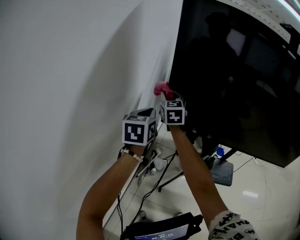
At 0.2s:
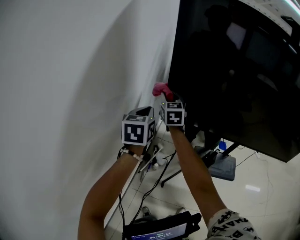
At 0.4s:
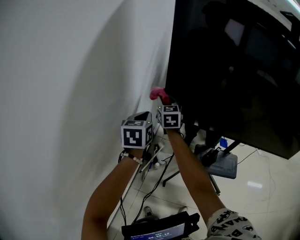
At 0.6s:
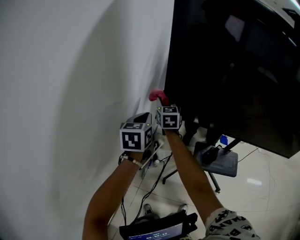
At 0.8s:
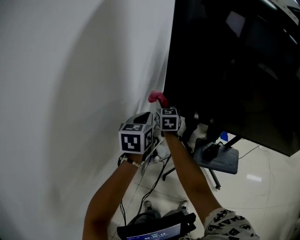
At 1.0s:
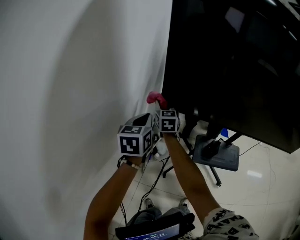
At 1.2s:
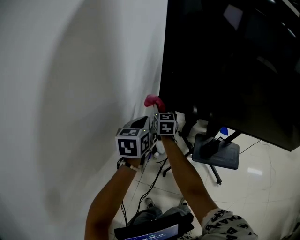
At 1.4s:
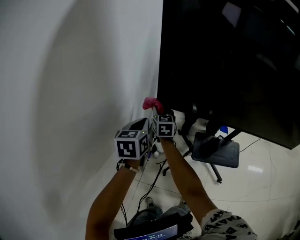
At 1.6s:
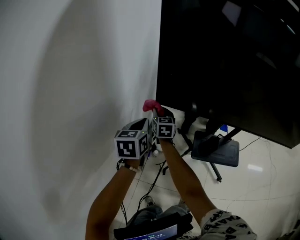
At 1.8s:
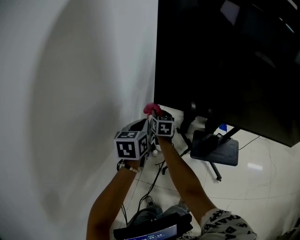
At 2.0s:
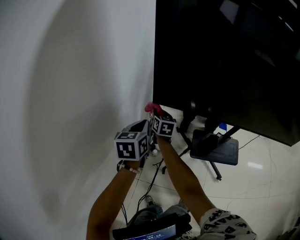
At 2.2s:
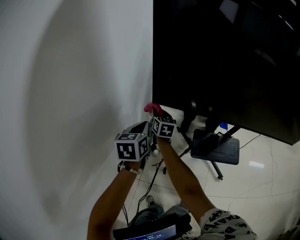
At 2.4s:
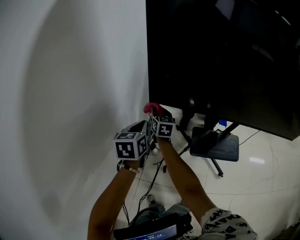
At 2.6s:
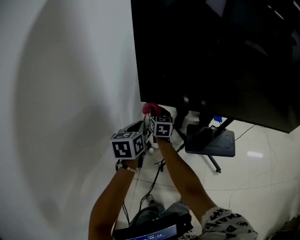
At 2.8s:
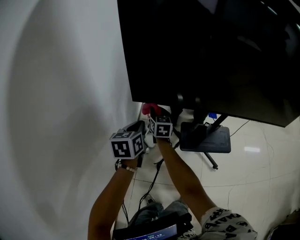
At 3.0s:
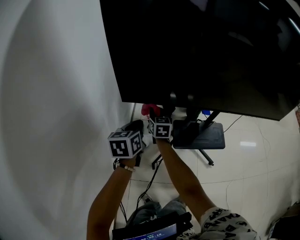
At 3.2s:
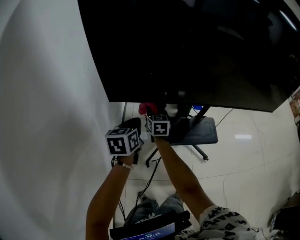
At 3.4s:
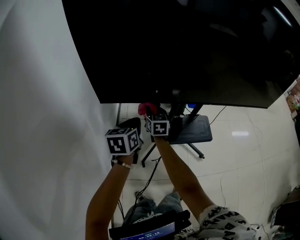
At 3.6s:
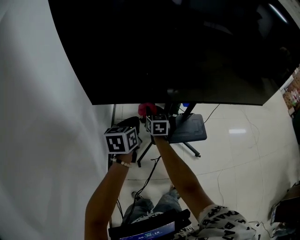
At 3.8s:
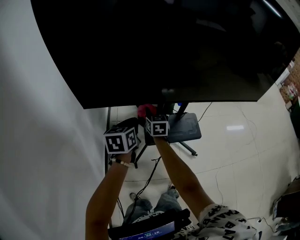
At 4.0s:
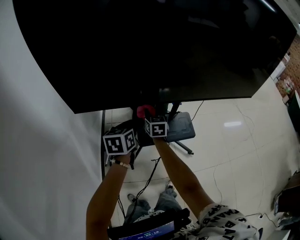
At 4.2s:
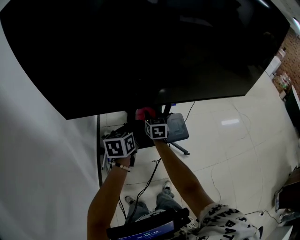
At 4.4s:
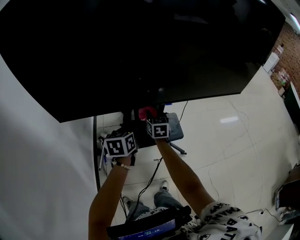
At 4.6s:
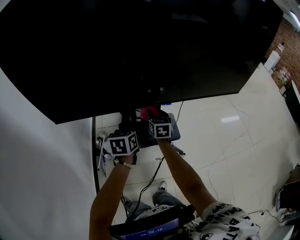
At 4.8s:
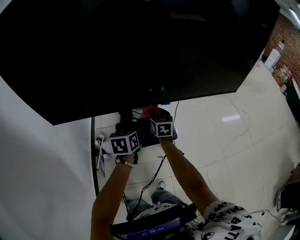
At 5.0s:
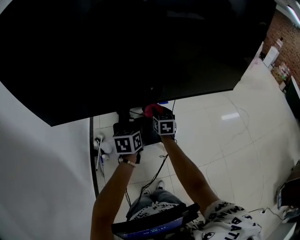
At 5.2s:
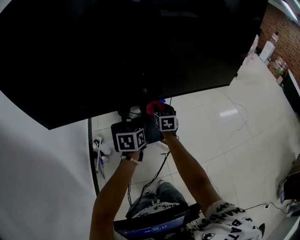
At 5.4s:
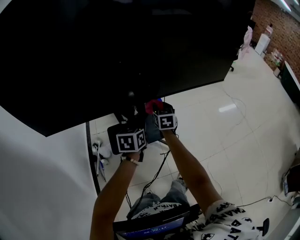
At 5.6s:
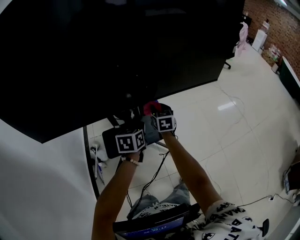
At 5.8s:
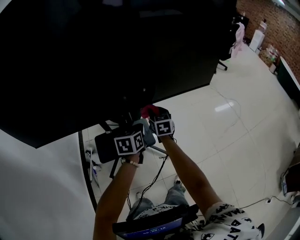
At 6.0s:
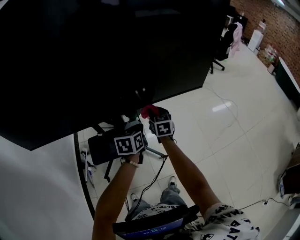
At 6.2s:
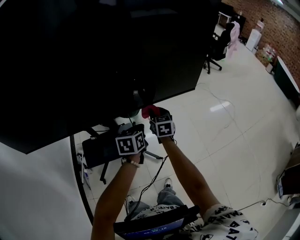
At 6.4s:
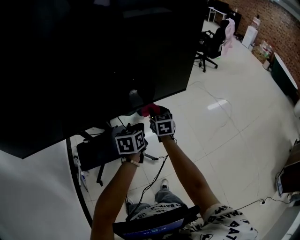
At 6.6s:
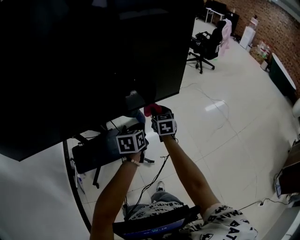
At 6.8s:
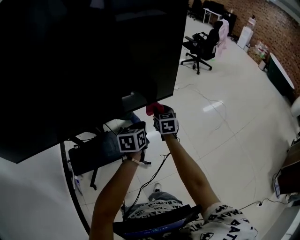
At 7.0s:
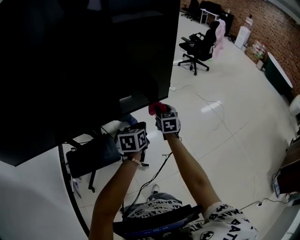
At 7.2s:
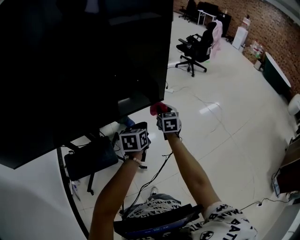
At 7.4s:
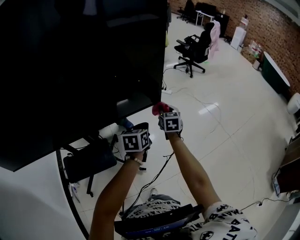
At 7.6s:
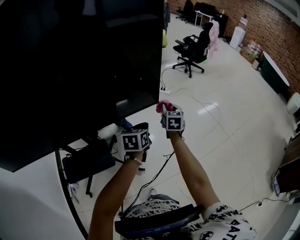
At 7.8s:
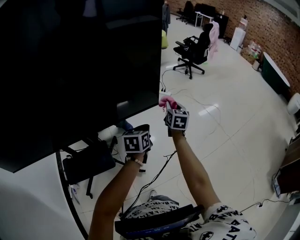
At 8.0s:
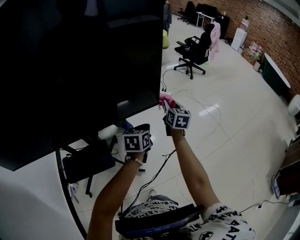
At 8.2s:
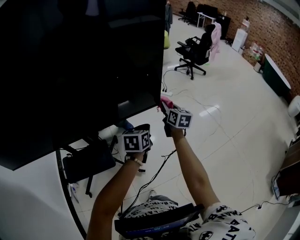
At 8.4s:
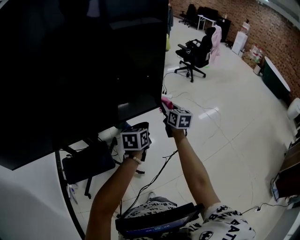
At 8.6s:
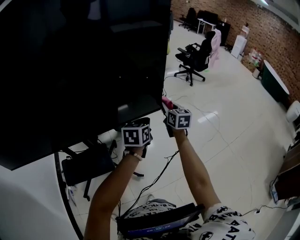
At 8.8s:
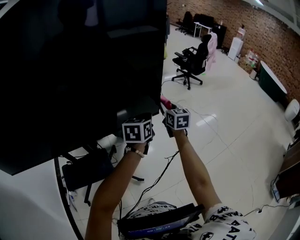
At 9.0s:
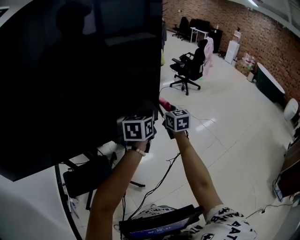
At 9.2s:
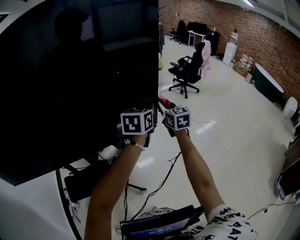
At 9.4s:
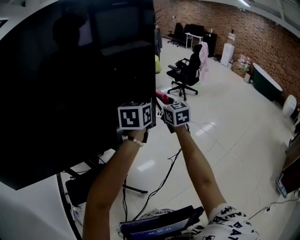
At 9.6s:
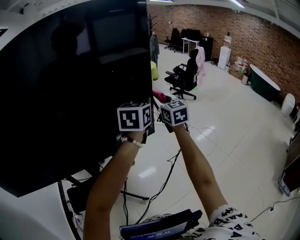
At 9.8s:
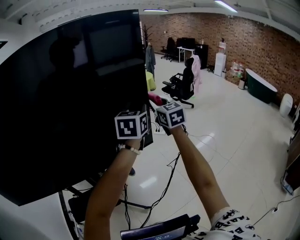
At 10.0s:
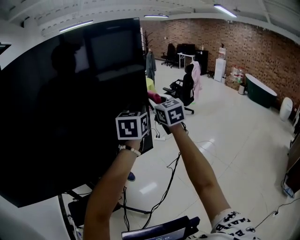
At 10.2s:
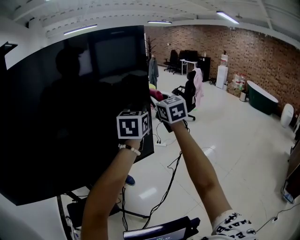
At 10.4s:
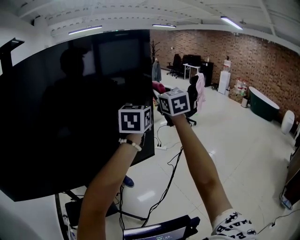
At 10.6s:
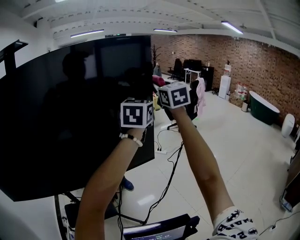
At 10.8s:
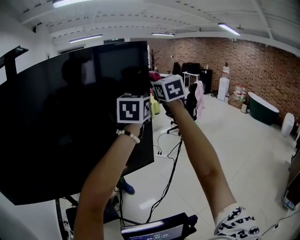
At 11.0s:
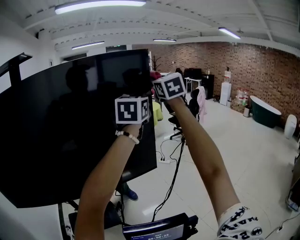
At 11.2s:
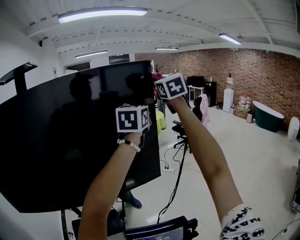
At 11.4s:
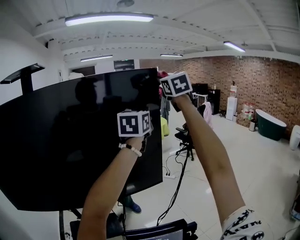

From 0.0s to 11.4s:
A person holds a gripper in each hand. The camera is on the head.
From 0.0s to 1.4s: The left gripper travels downward by some 15 cm. The right gripper goes some 20 cm downward.
From 1.4s to 2.8s: The two grippers go some 10 cm to the right.
From 2.8s to 4.2s: The two grippers go about 30 cm to the right.
From 4.2s to 5.6s: The grippers both shift to the right by approximately 25 cm.
From 5.6s to 7.2s: Both grippers travel together to the right and forward, roughly 40 cm.
From 7.2s to 8.6s: The two grippers go roughly 5 cm upward.
From 8.6s to 10.0s: The grippers both shift upward by approximately 30 cm. The right gripper rotates roughly 30 degrees. Meanwhile the left gripper turns by some 30 degrees.
From 10.0s to 11.4s: The right gripper moves upward, some 30 cm; the left gripper goes about 15 cm upward.

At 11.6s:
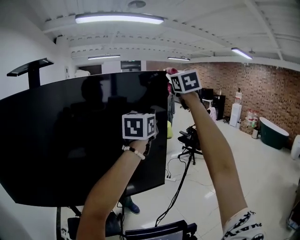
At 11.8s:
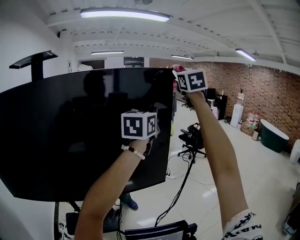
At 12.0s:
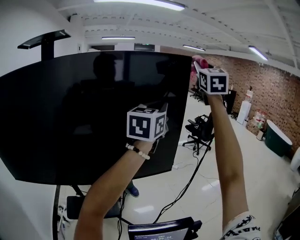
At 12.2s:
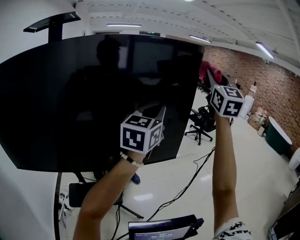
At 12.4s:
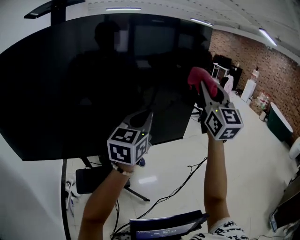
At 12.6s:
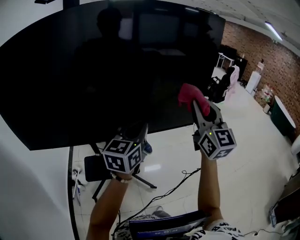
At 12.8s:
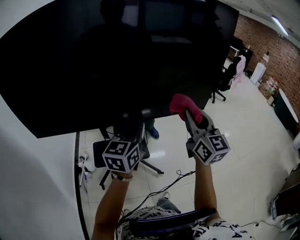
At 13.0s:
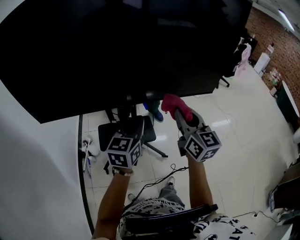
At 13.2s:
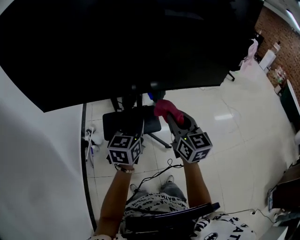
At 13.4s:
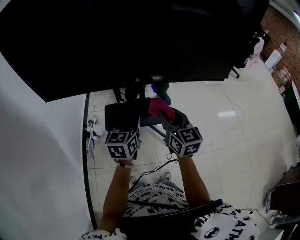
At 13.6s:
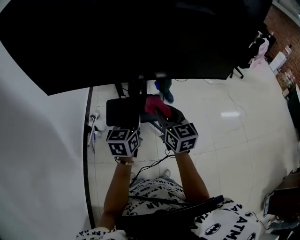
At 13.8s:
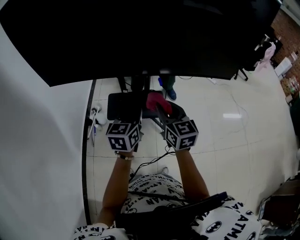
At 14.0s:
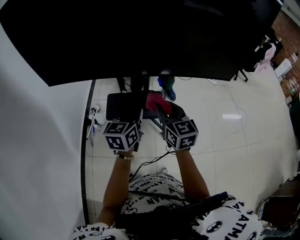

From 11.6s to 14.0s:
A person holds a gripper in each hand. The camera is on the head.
From 11.6s to 12.8s: The left gripper shifts some 50 cm to the left, backward and downward, while the right gripper heads downward, backward and to the left, covering approximately 50 cm, and swivels about 30 degrees.
From 12.8s to 14.0s: The right gripper heads downward and to the left, covering roughly 25 cm, and changes its angle by roughly 30 degrees; the left gripper is displaced downward and to the left by approximately 15 cm.

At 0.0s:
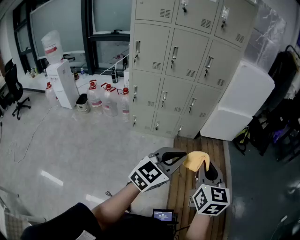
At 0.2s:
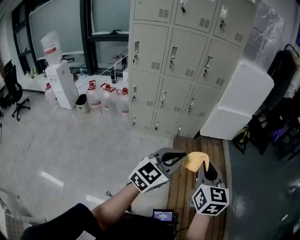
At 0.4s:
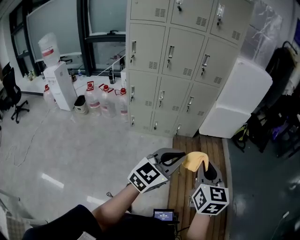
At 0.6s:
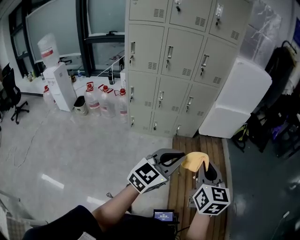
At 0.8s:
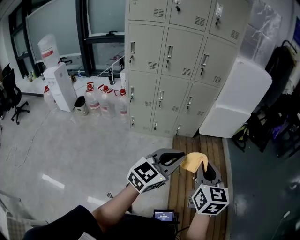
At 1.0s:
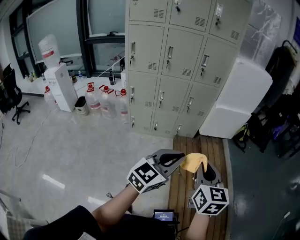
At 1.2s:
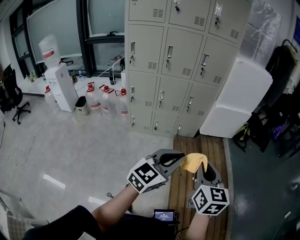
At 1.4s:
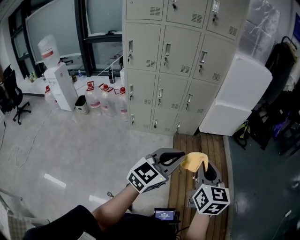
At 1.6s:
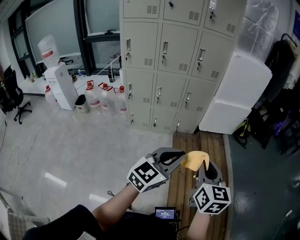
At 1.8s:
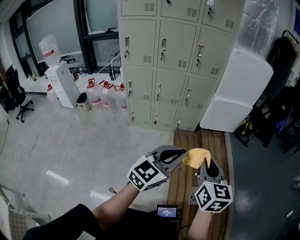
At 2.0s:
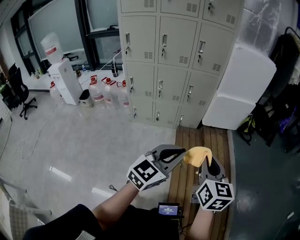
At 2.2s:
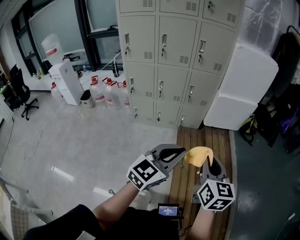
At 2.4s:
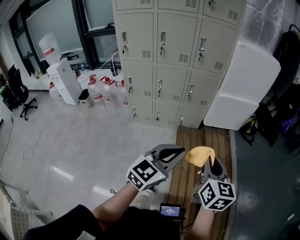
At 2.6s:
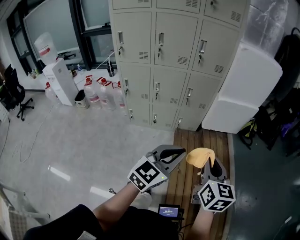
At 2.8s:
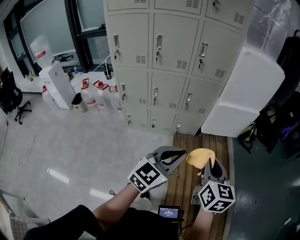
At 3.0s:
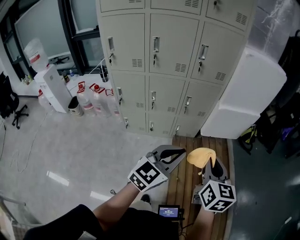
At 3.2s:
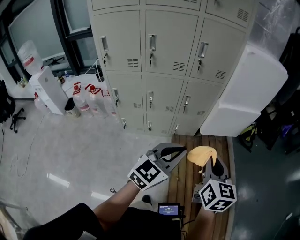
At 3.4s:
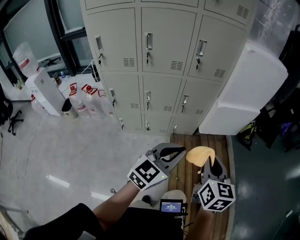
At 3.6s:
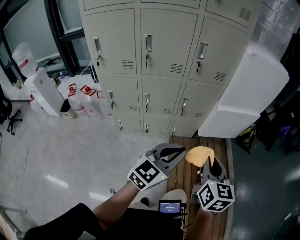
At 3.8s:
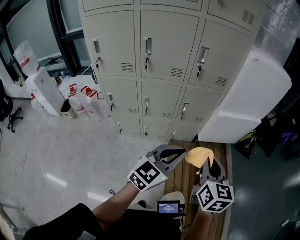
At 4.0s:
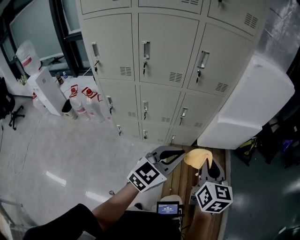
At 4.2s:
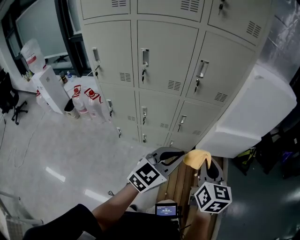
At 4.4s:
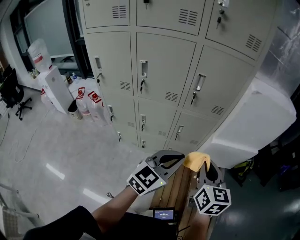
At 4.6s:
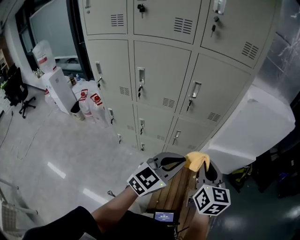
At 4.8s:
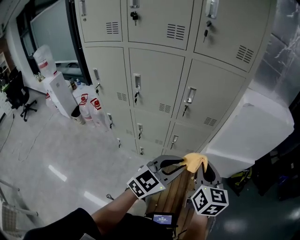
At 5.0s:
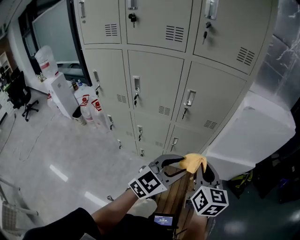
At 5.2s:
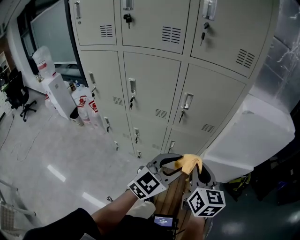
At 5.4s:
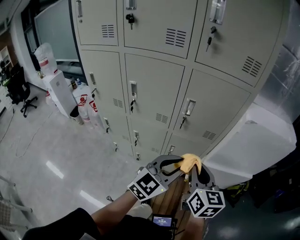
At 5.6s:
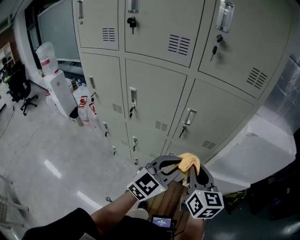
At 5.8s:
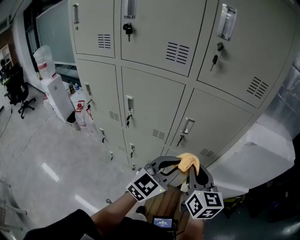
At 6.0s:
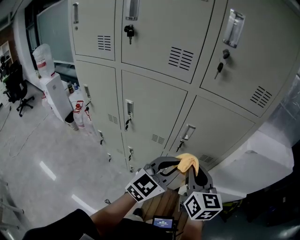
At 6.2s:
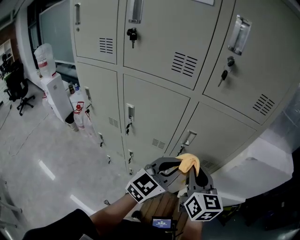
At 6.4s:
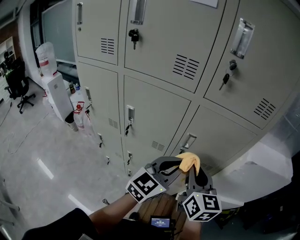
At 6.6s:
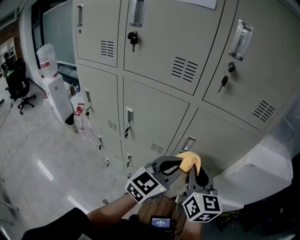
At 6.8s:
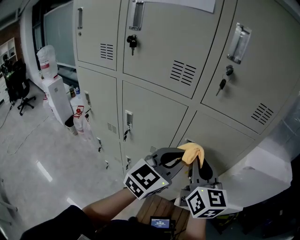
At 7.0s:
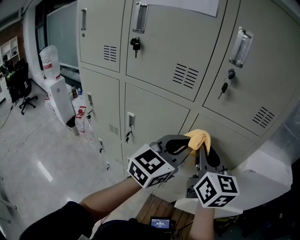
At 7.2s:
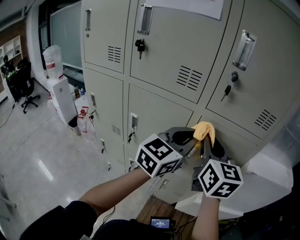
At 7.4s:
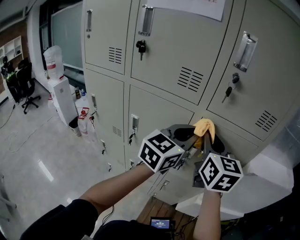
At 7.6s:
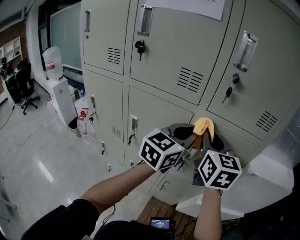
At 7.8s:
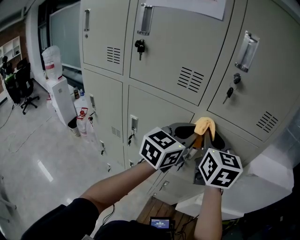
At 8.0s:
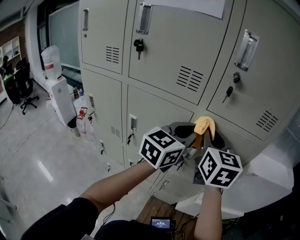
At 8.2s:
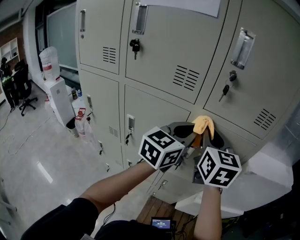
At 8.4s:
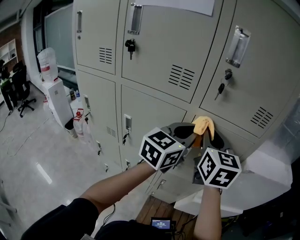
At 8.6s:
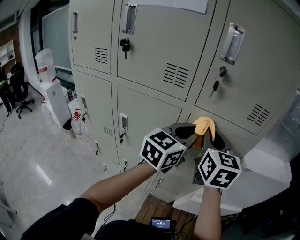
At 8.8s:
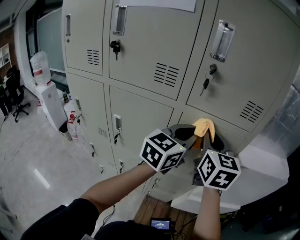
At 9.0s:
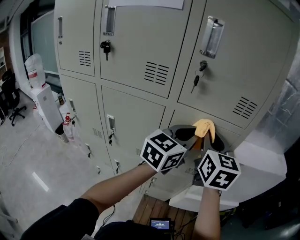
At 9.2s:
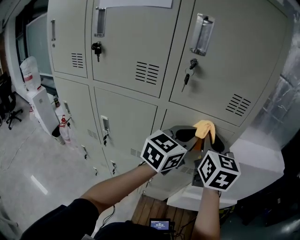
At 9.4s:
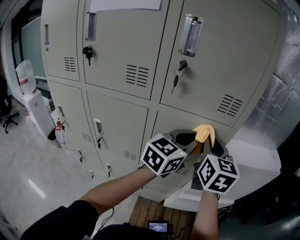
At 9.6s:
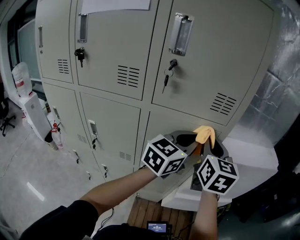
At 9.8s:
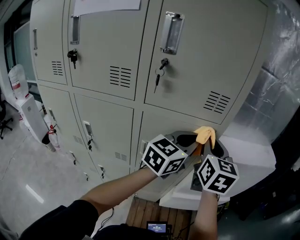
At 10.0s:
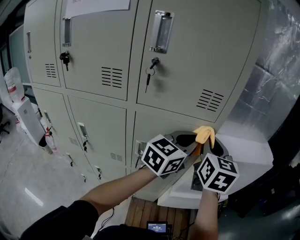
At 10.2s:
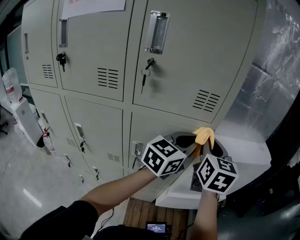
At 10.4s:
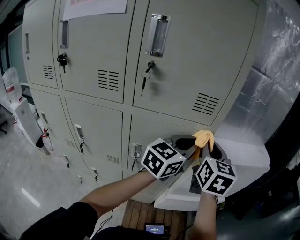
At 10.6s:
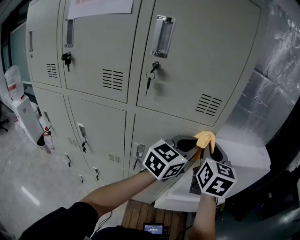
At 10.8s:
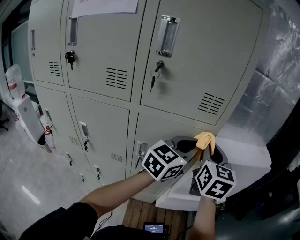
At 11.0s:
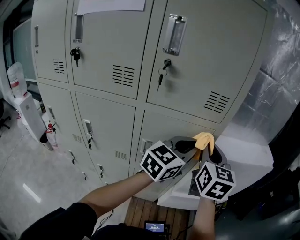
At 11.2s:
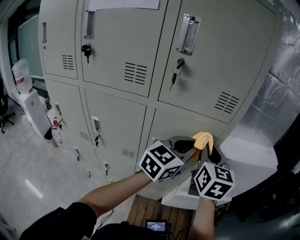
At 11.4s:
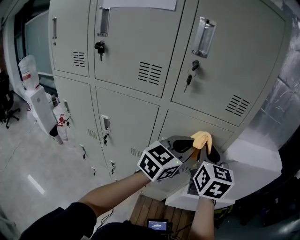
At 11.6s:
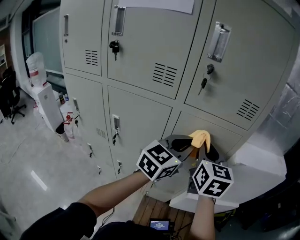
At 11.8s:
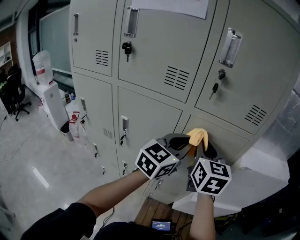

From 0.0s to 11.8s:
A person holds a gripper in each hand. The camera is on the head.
From 0.0s to 1.4s: The grippers make only small movements.
From 1.4s to 3.0s: The grippers both shift forward by about 25 cm.
From 3.0s to 4.4s: Both grippers move forward, roughly 25 cm.
From 4.4s to 6.0s: The two grippers go approximately 25 cm forward and upward. The left gripper opens, then closes again.
From 6.0s to 7.4s: Both grippers travel together upward and forward, roughly 20 cm.
From 7.4s to 8.8s: The grippers both shift to the right by about 5 cm.
From 8.8s to 10.4s: The grippers both shift to the right by some 15 cm.
From 10.4s to 11.8s: The two grippers go about 20 cm to the left and backward.
